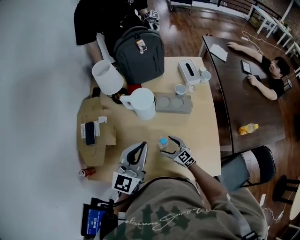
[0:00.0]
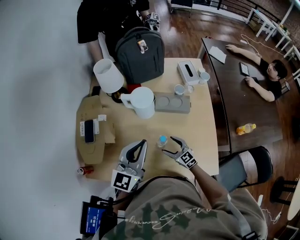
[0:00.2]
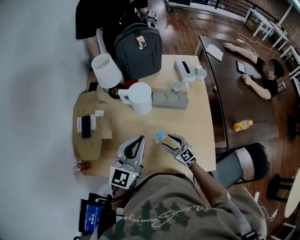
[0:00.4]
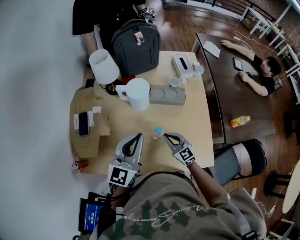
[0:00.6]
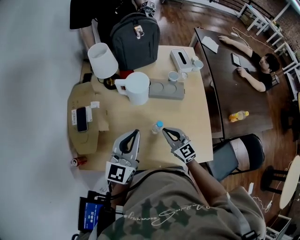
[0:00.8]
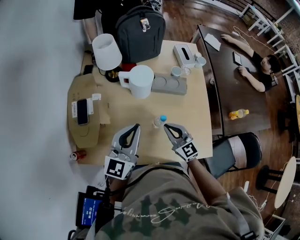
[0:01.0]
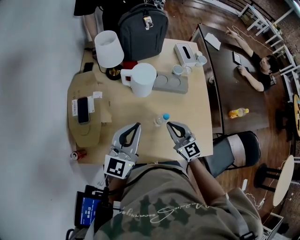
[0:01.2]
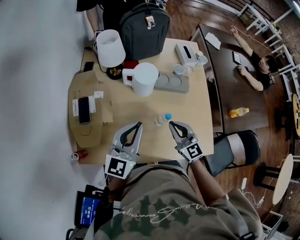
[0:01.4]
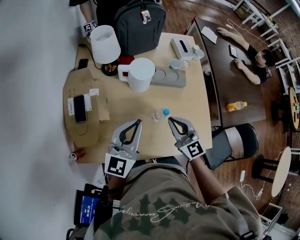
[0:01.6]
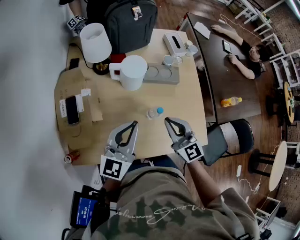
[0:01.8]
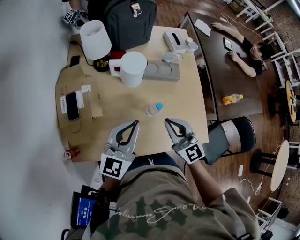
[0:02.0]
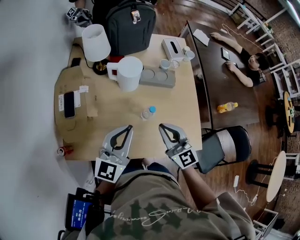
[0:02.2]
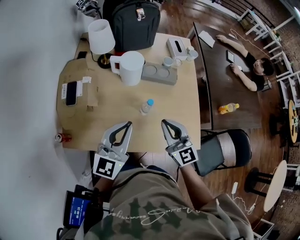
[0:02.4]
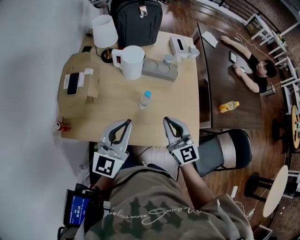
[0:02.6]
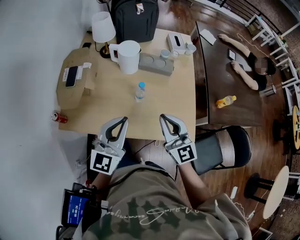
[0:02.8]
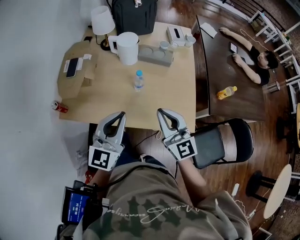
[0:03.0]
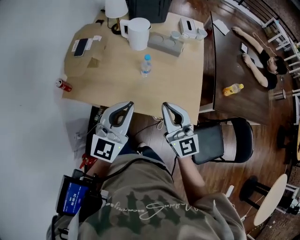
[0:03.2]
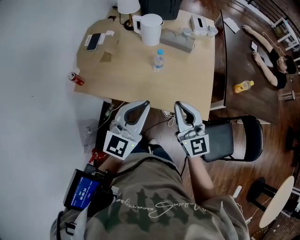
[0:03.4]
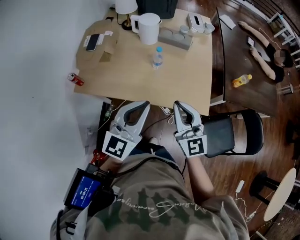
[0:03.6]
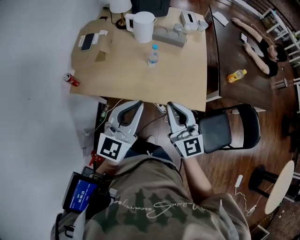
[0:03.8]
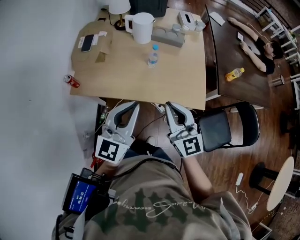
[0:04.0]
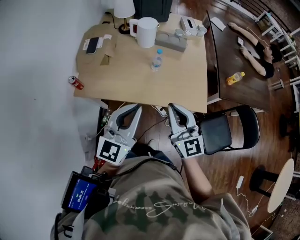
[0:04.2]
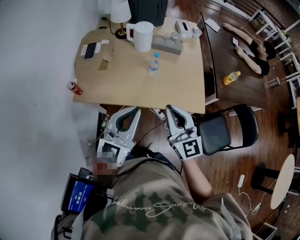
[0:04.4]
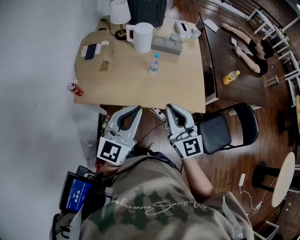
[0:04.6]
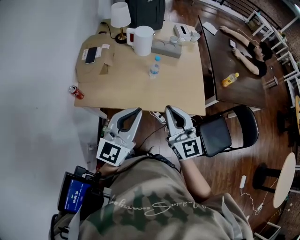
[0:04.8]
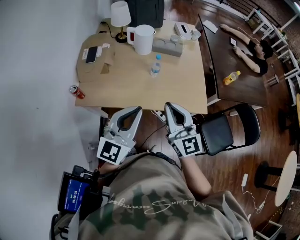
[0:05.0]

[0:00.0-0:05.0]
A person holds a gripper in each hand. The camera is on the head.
0:00.0 to 0:01.6: The left gripper heads to the left, covering roughly 5 cm. The right gripper travels upward by roughly 20 cm, swivels about 20 degrees, and closes its fingers.
0:01.6 to 0:03.4: The two grippers go some 30 cm backward and to the right.
0:03.4 to 0:05.0: Both grippers move to the left and backward, about 10 cm.

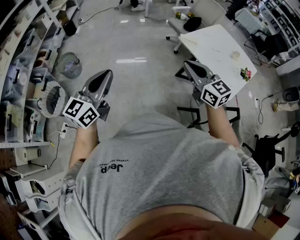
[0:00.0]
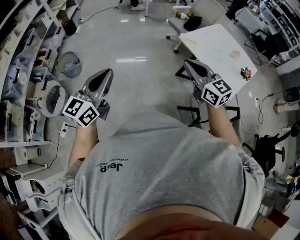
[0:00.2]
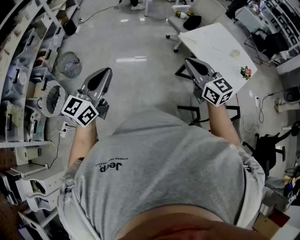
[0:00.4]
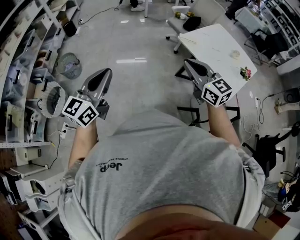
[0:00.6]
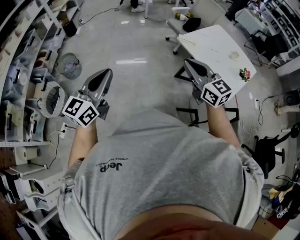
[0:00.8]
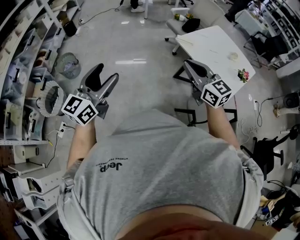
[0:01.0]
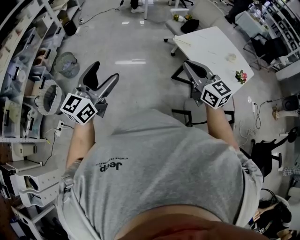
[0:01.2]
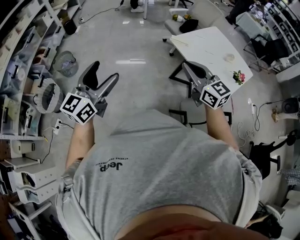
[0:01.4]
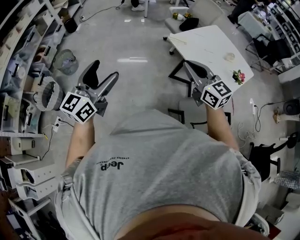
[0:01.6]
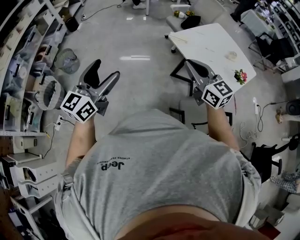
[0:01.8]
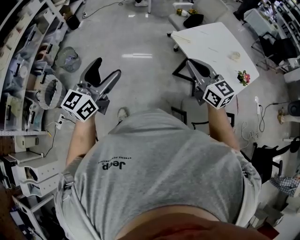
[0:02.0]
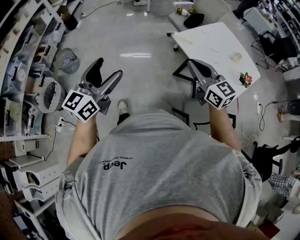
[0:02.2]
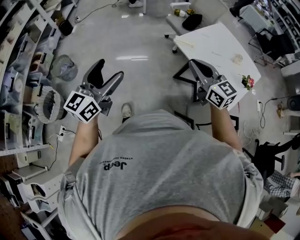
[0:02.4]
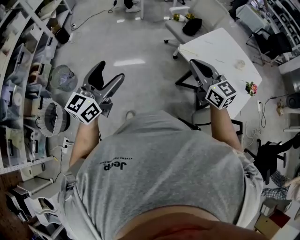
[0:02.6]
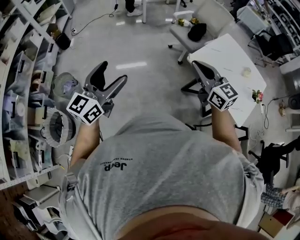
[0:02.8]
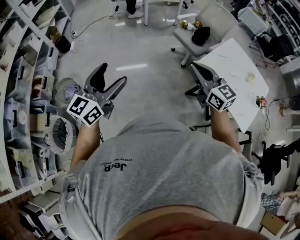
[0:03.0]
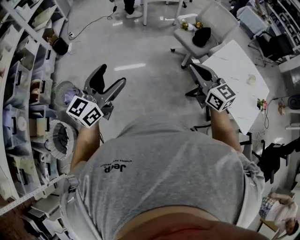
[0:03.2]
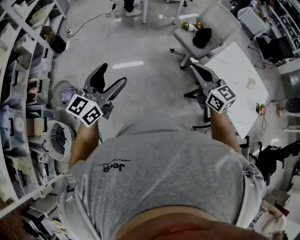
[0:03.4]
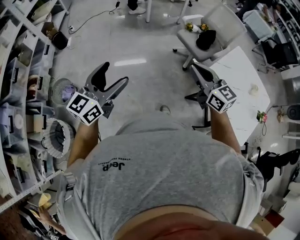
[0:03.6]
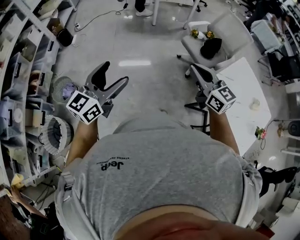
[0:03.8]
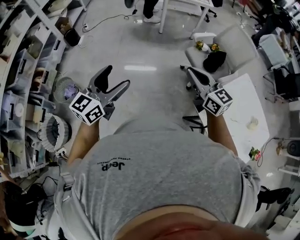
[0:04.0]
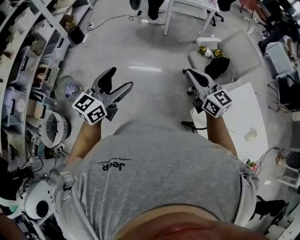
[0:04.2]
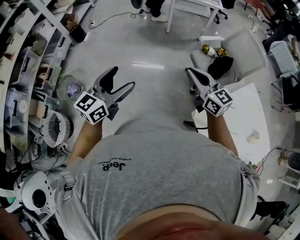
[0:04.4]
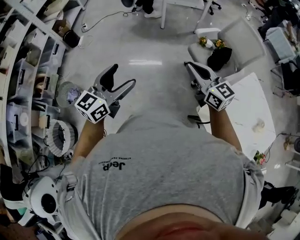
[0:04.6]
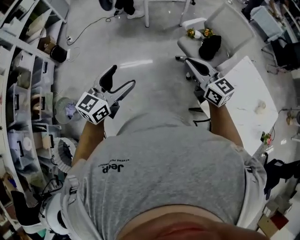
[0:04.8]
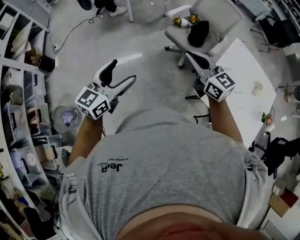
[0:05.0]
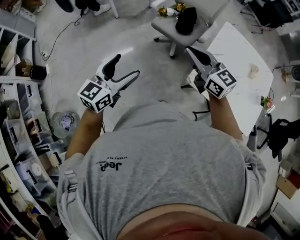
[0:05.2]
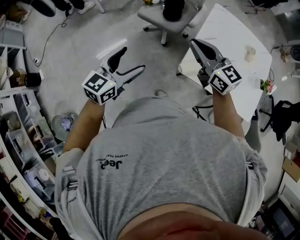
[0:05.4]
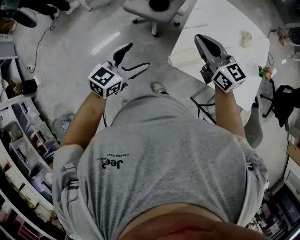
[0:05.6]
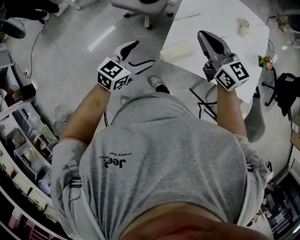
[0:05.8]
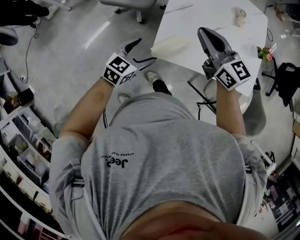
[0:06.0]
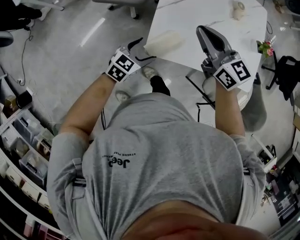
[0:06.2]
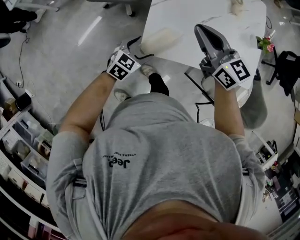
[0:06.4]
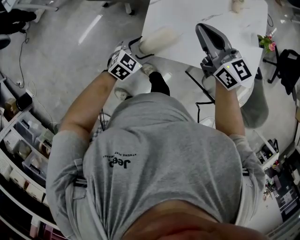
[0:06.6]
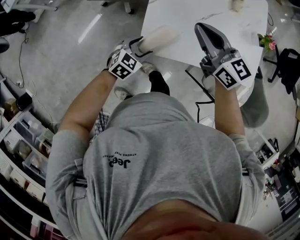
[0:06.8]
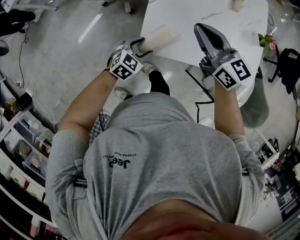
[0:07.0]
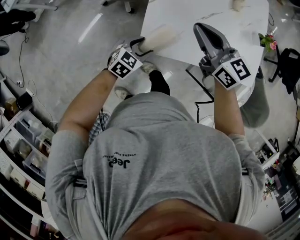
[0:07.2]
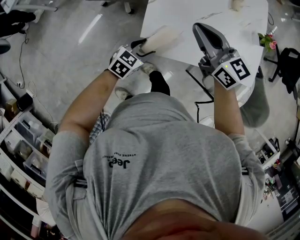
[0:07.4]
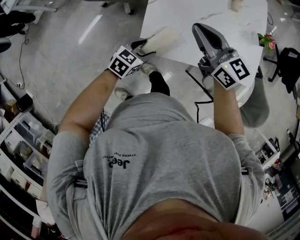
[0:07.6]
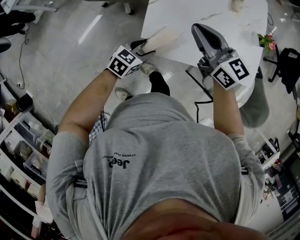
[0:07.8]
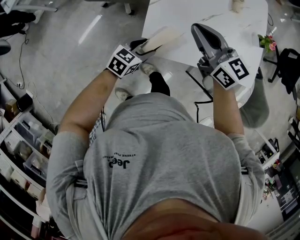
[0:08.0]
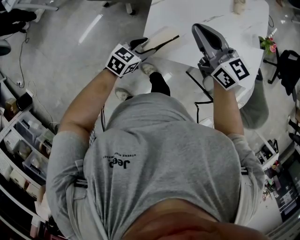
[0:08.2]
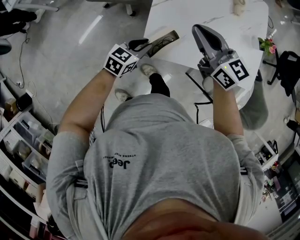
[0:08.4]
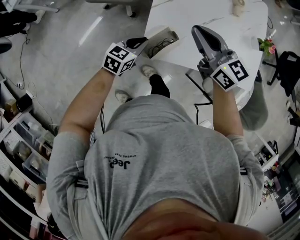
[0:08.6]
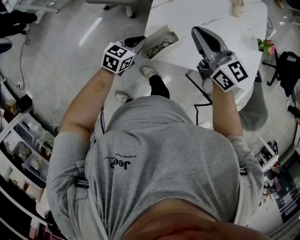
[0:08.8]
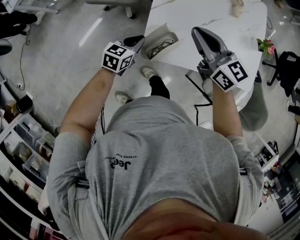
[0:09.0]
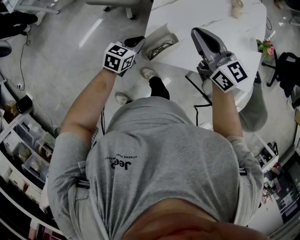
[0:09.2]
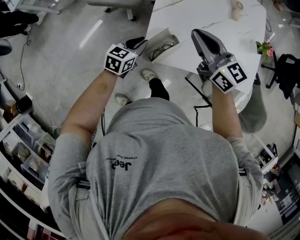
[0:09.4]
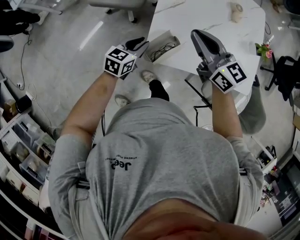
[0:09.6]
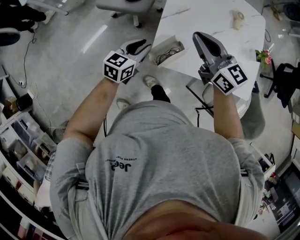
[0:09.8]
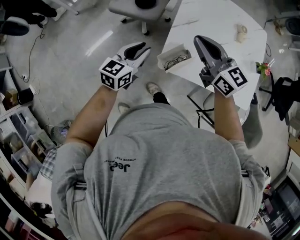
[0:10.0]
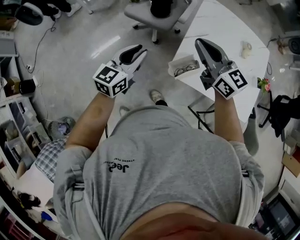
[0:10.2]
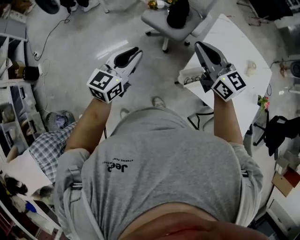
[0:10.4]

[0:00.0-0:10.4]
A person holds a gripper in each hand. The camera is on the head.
0:00.0 to 0:01.4: The grippers both shift to the right by roughly 10 cm. The left gripper opens its fingers.
0:01.4 to 0:03.0: The grippers both shift forward and to the left by some 40 cm.
0:03.0 to 0:04.4: The right gripper travels forward by approximately 35 cm. Meanwhile the left gripper is displaced forward and to the right by approximately 30 cm.
0:04.4 to 0:06.0: The left gripper changes place by some 50 cm, and turns by some 70 degrees. The right gripper shifts by roughly 35 cm, and swivels roughly 50 degrees.
0:06.0 to 0:07.4: The left gripper is displaced downward and to the right by about 10 cm, while the right gripper shifts by approximately 5 cm.
0:07.4 to 0:09.0: The left gripper shifts approximately 10 cm forward and to the left, and closes its fingers.
0:09.0 to 0:10.4: The right gripper ends up approximately 25 cm from where it was, and swivels about 20 degrees, while the left gripper shifts roughly 25 cm upward, and changes its angle by some 40 degrees.

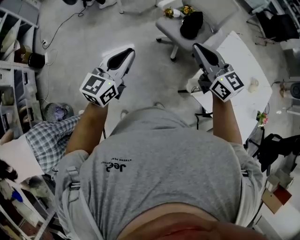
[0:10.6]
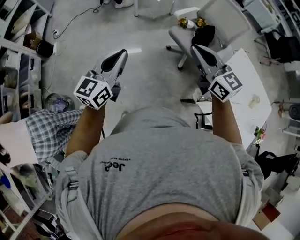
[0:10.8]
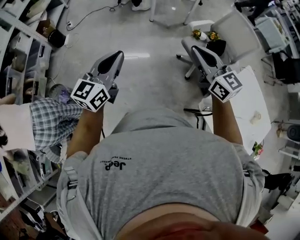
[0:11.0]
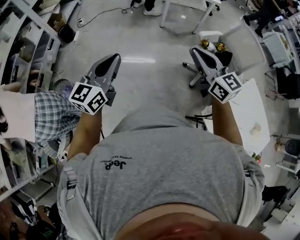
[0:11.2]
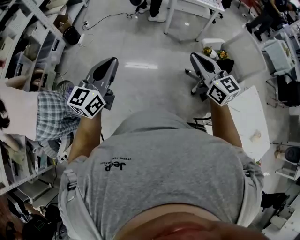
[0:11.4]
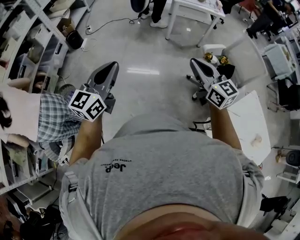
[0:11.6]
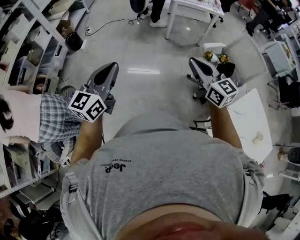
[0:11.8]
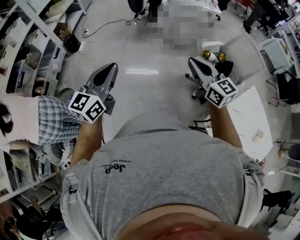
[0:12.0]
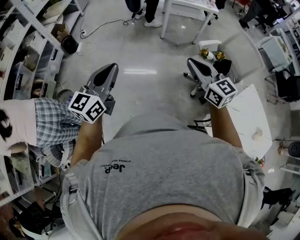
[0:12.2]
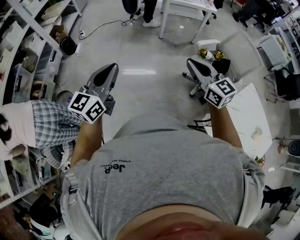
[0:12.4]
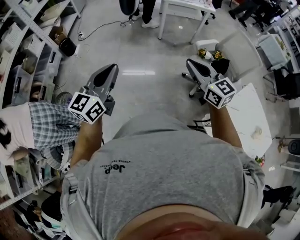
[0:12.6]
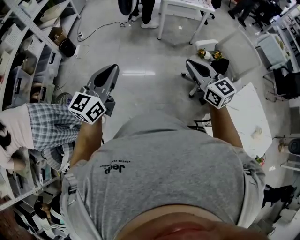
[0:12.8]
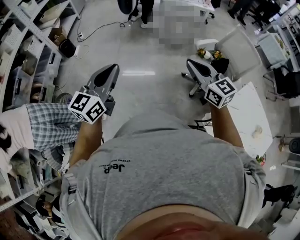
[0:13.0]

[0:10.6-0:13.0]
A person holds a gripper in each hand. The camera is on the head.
0:10.6 to 0:11.8: Both grippers travel together to the left, roughly 25 cm. The right gripper changes its angle by about 20 degrees, while the left gripper rotates approximately 30 degrees.
0:11.8 to 0:13.0: There are only small adjustments of the grippers.

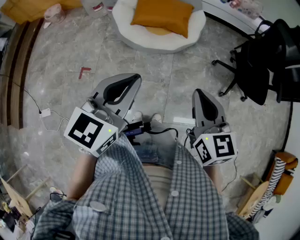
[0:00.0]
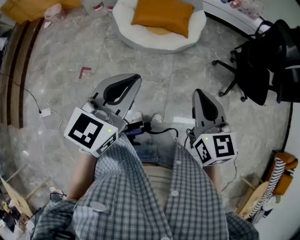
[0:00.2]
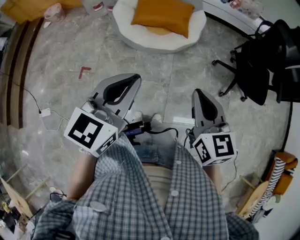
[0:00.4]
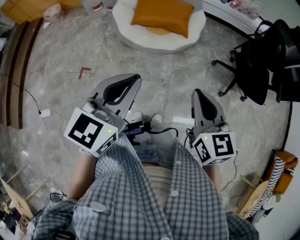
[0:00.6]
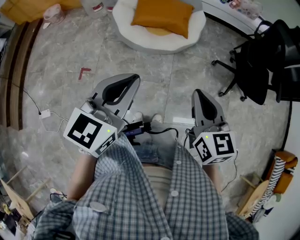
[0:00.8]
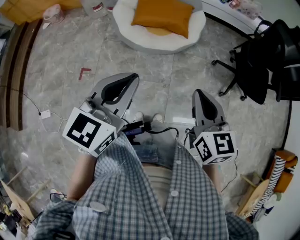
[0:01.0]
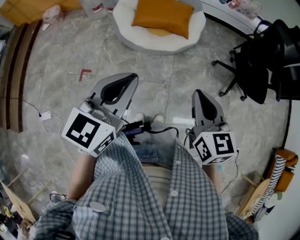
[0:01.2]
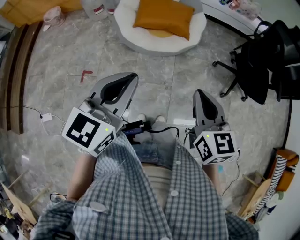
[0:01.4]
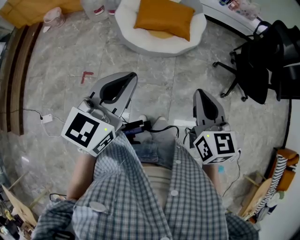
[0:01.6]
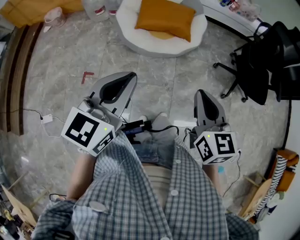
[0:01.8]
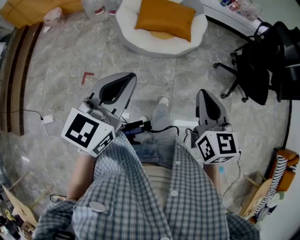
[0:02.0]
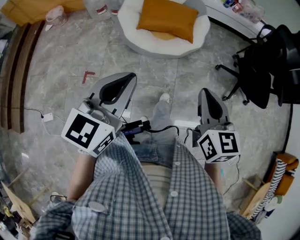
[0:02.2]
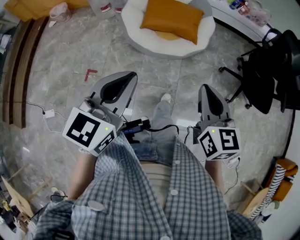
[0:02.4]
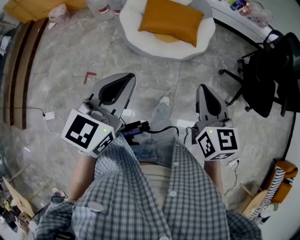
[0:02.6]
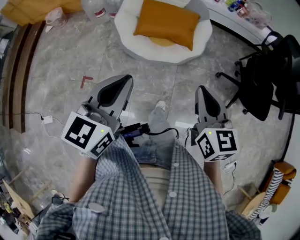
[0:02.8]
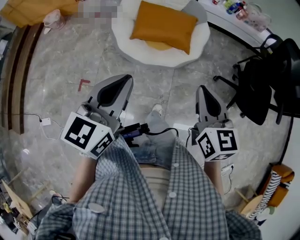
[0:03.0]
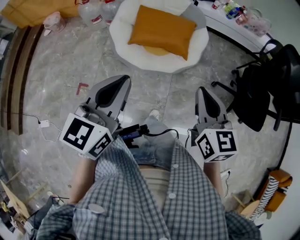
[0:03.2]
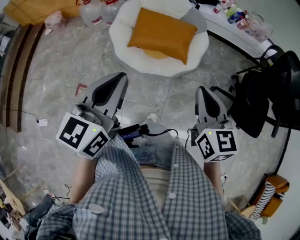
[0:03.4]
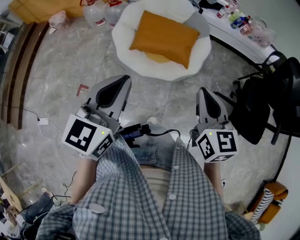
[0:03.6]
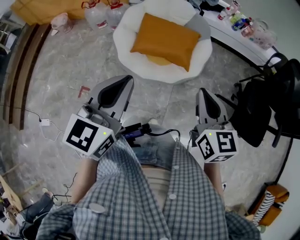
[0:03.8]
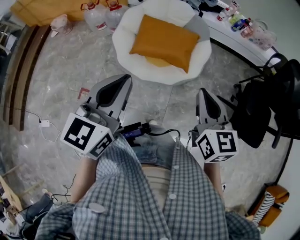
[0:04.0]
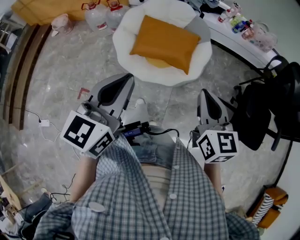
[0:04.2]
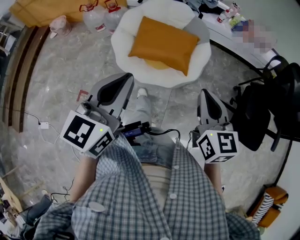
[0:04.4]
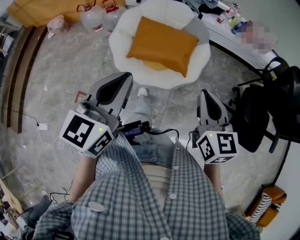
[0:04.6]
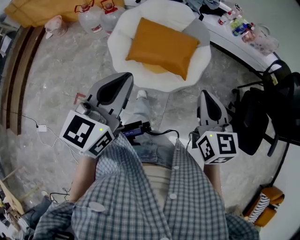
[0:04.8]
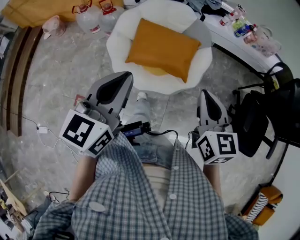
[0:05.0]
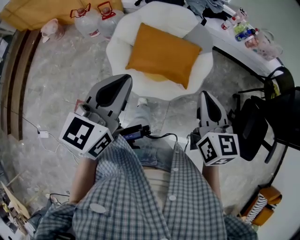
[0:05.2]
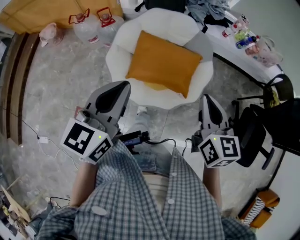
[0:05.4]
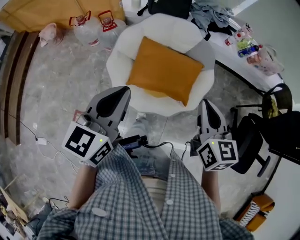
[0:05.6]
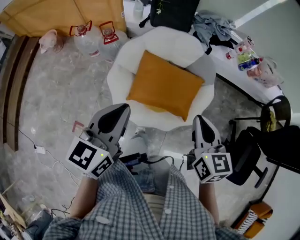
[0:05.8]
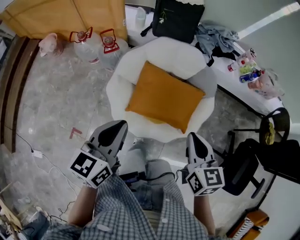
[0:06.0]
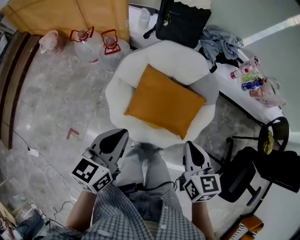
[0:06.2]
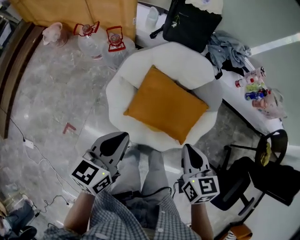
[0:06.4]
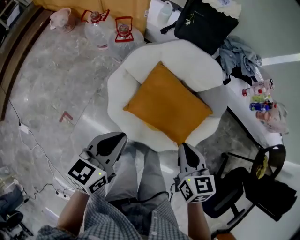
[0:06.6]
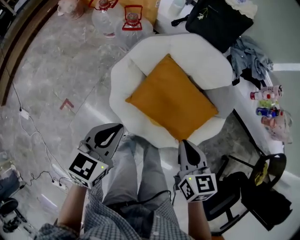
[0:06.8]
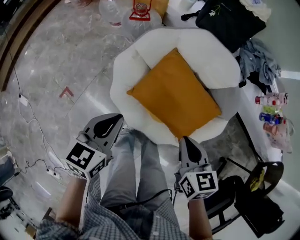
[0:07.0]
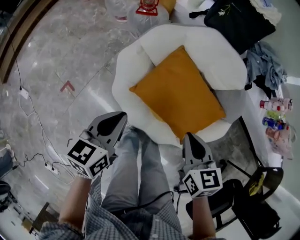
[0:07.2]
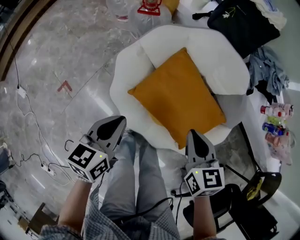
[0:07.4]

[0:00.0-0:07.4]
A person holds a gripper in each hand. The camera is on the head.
0:00.0 to 0:01.4: The left gripper goes about 5 cm to the left.
0:01.4 to 0:03.0: The two grippers go roughly 15 cm forward.
0:03.0 to 0:04.4: The left gripper goes some 10 cm forward; the right gripper travels forward and to the right by approximately 15 cm.
0:04.4 to 0:06.0: The left gripper shifts some 30 cm forward and to the left. Meanwhile the right gripper heads forward, covering roughly 30 cm.
0:06.0 to 0:07.4: The left gripper moves downward, about 25 cm, and rotates some 30 degrees; the right gripper travels downward and forward by approximately 20 cm, and rotates some 30 degrees.